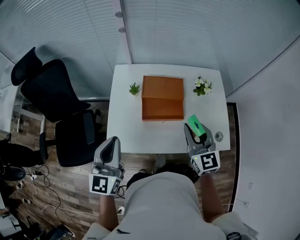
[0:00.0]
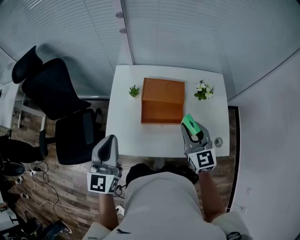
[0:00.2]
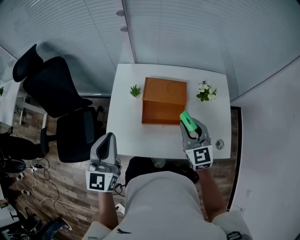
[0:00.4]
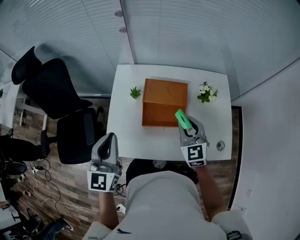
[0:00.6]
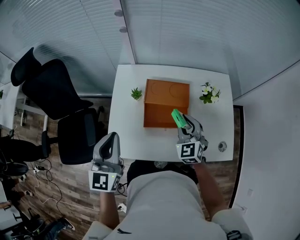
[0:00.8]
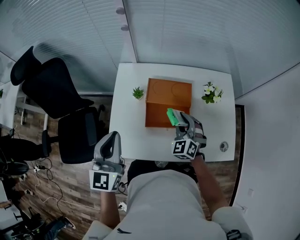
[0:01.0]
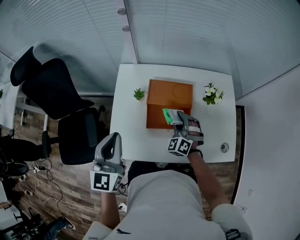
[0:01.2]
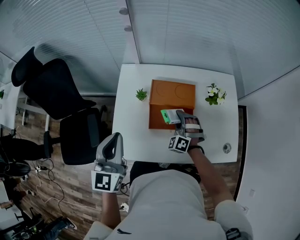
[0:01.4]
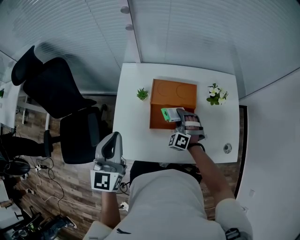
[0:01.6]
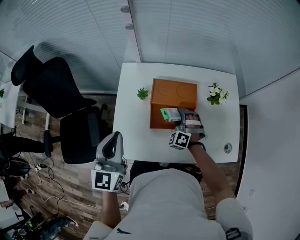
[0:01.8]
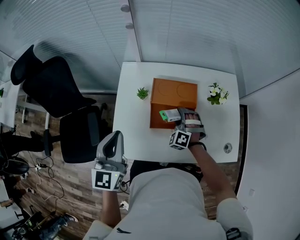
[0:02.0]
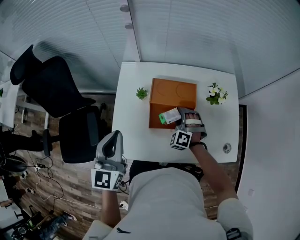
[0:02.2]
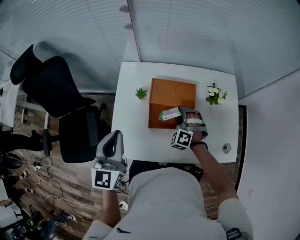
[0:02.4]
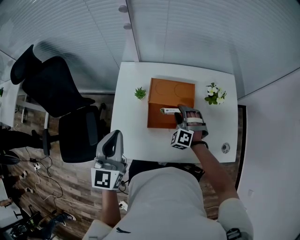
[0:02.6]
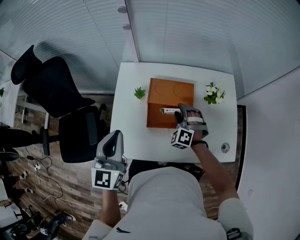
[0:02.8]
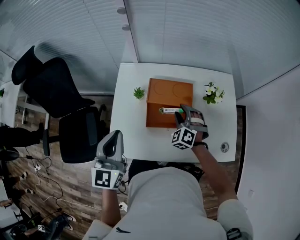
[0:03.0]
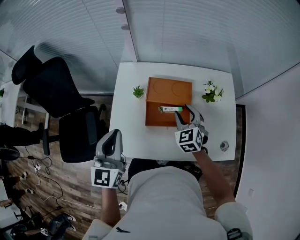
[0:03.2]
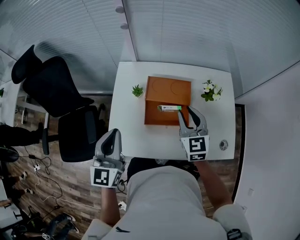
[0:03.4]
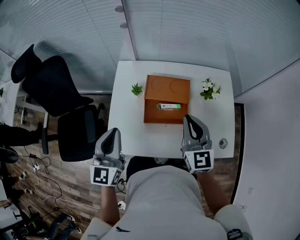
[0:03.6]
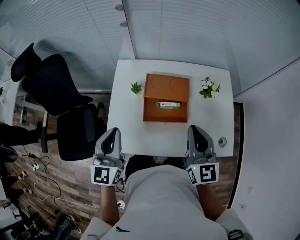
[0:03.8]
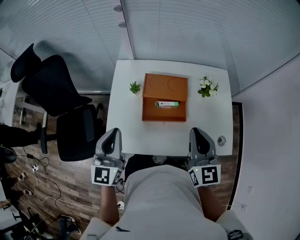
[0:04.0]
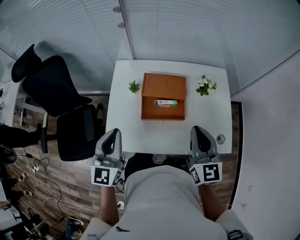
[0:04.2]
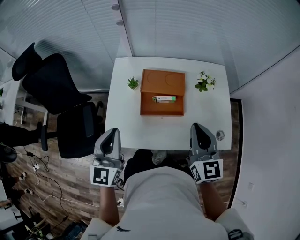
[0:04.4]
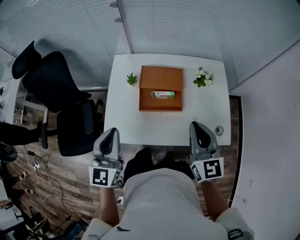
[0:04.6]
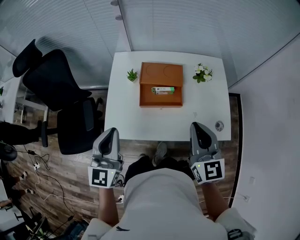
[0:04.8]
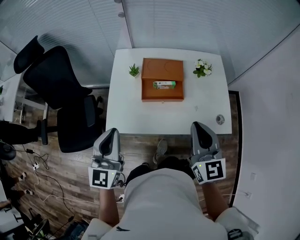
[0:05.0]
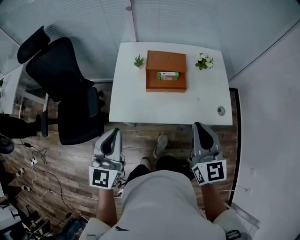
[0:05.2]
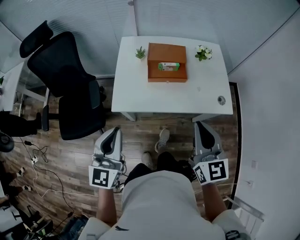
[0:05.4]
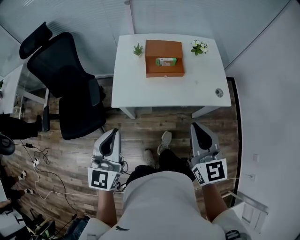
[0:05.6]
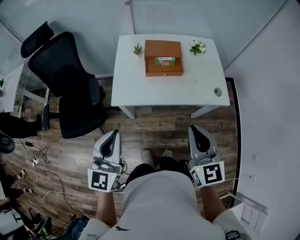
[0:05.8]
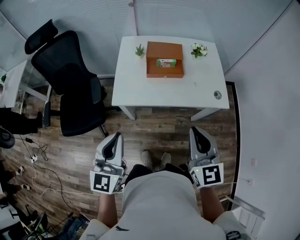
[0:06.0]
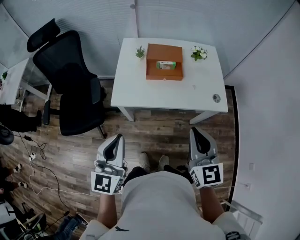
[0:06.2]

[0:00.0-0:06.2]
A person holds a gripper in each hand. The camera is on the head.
0:00.0 to 0:01.6: The right gripper travels downward and forward by roughly 25 cm, and rolls counterclockwise, seen from behind, by some 60 degrees; the left gripper goes approximately 10 cm forward.
0:01.6 to 0:03.2: The right gripper is displaced upward by about 10 cm, rolls clockwise, seen from behind, by about 40 degrees, and opens its fingers.
0:03.2 to 0:04.6: The left gripper heads backward, covering approximately 10 cm. The right gripper moves backward and upward, roughly 25 cm, swivels approximately 30 degrees, and closes.
0:04.6 to 0:06.2: Both grippers move backward, approximately 25 cm.

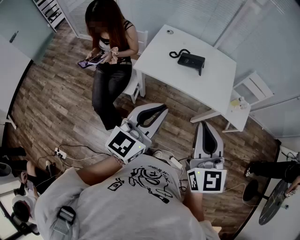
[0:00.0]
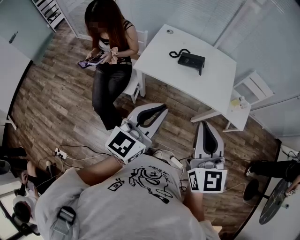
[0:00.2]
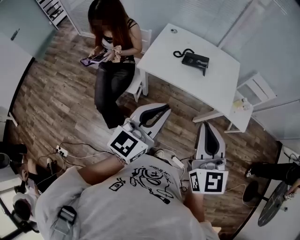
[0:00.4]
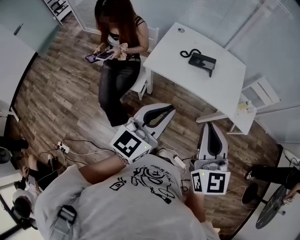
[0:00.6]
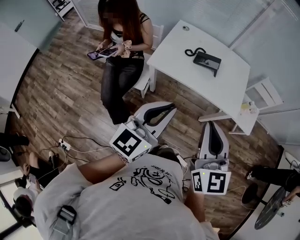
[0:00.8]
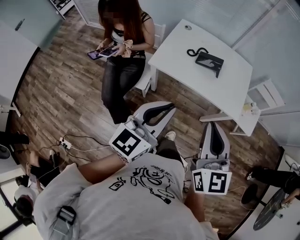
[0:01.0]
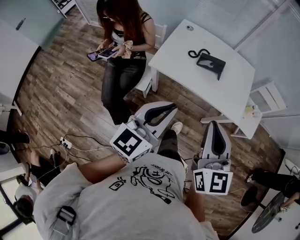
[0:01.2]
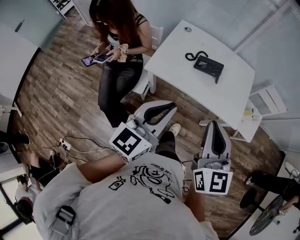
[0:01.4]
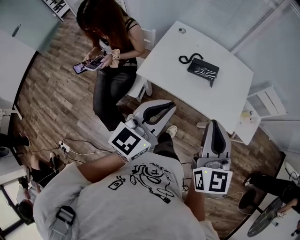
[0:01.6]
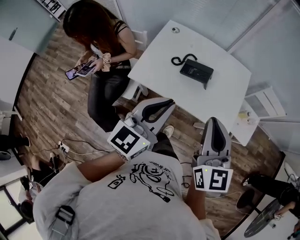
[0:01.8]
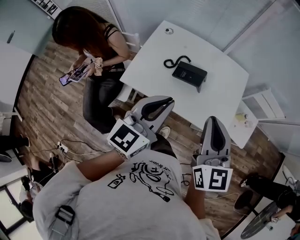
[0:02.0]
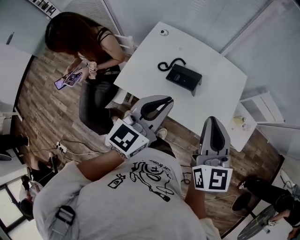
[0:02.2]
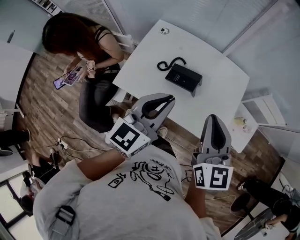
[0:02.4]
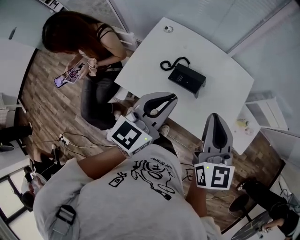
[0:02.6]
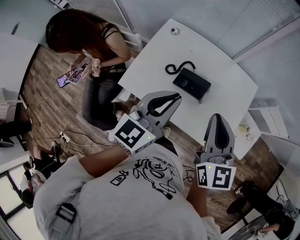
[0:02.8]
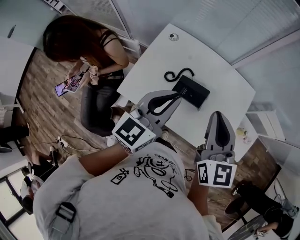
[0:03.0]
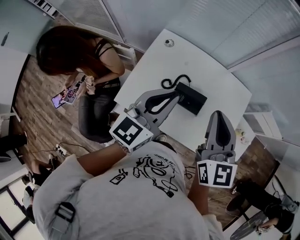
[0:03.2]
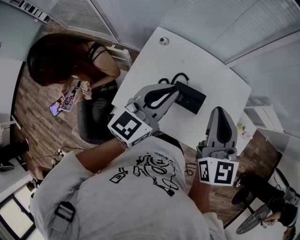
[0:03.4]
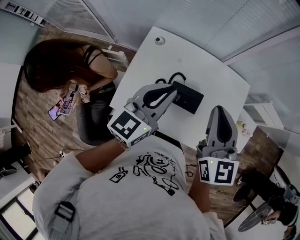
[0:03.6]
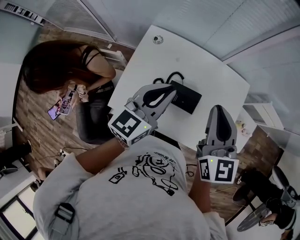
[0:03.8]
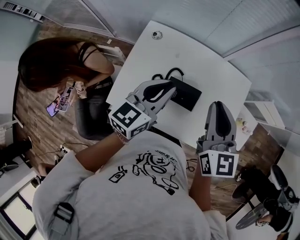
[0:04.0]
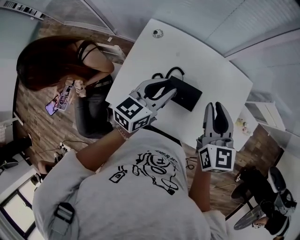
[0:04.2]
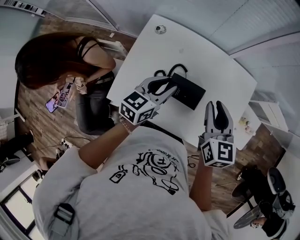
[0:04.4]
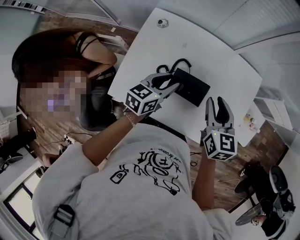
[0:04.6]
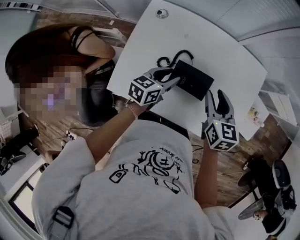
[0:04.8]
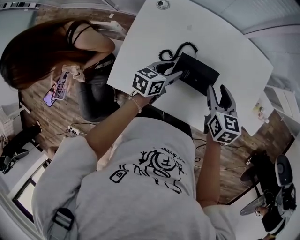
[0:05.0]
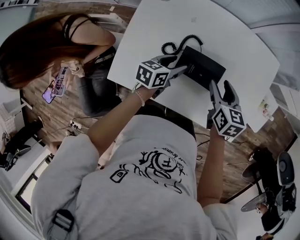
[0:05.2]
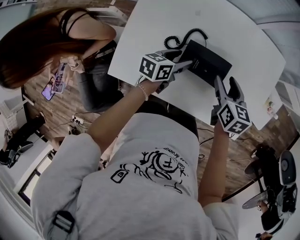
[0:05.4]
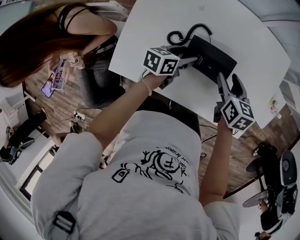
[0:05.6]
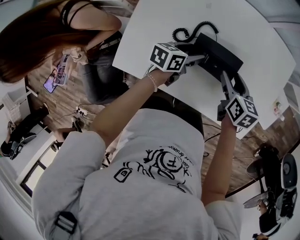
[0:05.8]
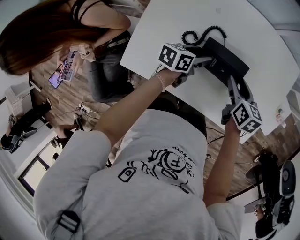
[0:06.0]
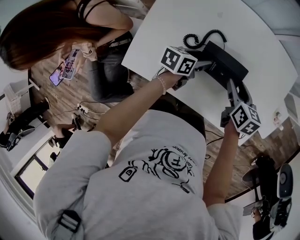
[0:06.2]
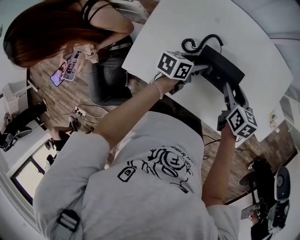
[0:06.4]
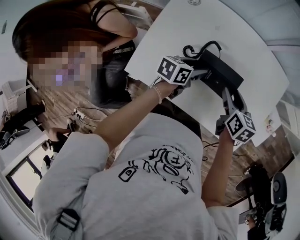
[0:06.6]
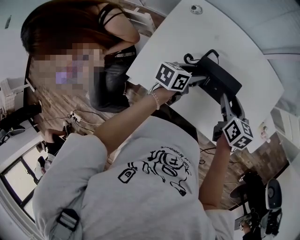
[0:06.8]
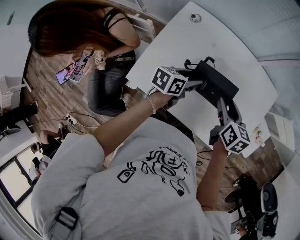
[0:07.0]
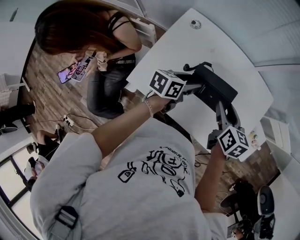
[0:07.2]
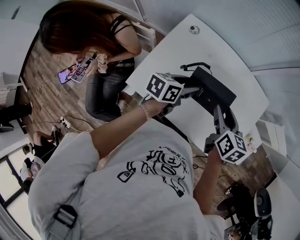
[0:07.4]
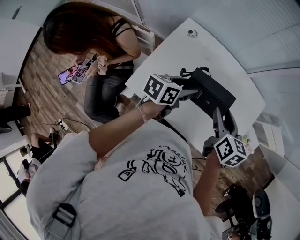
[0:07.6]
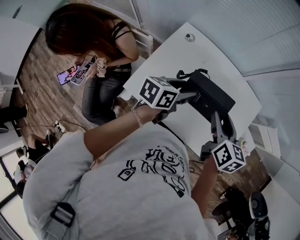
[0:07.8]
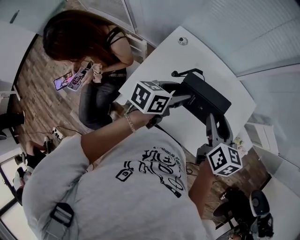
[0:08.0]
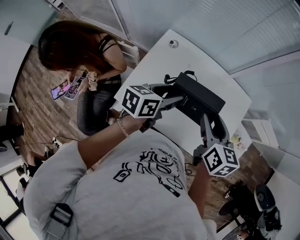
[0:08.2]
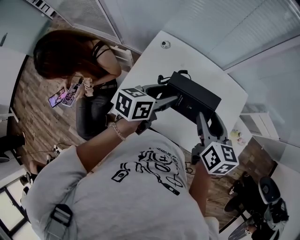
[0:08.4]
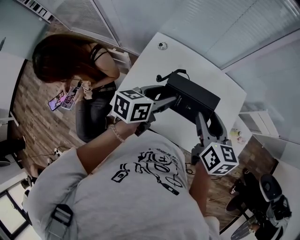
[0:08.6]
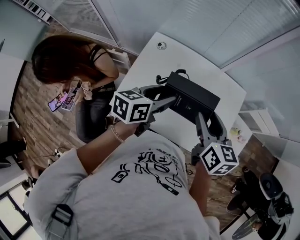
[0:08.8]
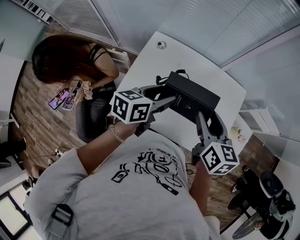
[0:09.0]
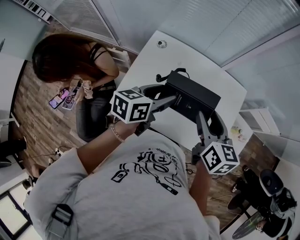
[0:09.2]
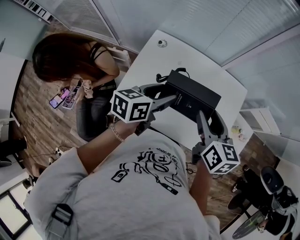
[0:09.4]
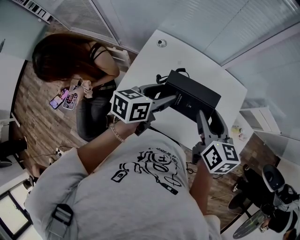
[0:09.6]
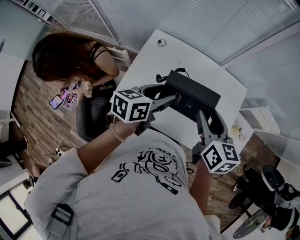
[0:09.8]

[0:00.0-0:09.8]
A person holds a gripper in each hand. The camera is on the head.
0:00.0 to 0:01.4: The grippers both shift forward by roughly 10 cm.
0:01.4 to 0:02.8: Both grippers move forward, roughly 30 cm.
0:02.8 to 0:04.2: Both grippers move forward and downward, roughly 15 cm.
0:04.2 to 0:05.6: Both grippers move downward, roughly 30 cm. The right gripper turns by approximately 30 degrees, and opens up; the left gripper changes its angle by some 30 degrees, and opens.
0:05.6 to 0:07.0: Both grippers move upward, about 10 cm.
0:07.0 to 0:08.4: Both grippers travel together upward, some 15 cm.
0:08.4 to 0:09.8: The two grippers keep their place.

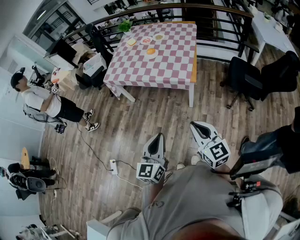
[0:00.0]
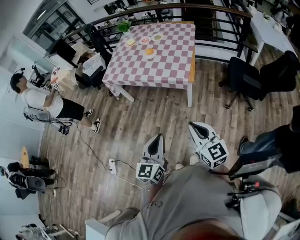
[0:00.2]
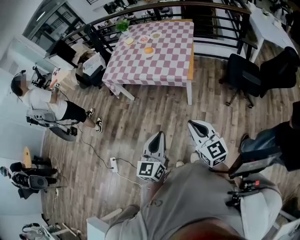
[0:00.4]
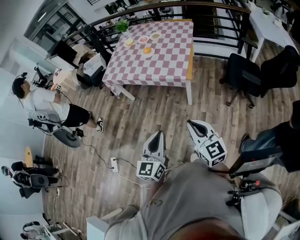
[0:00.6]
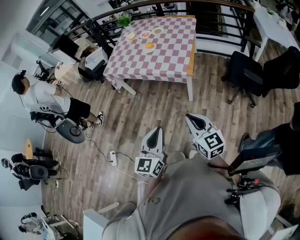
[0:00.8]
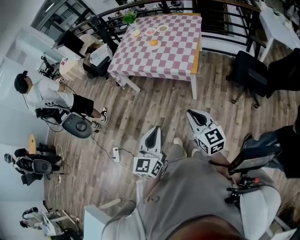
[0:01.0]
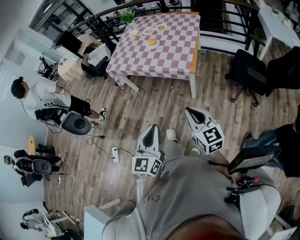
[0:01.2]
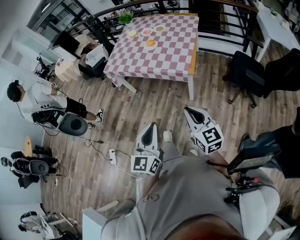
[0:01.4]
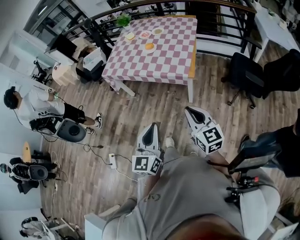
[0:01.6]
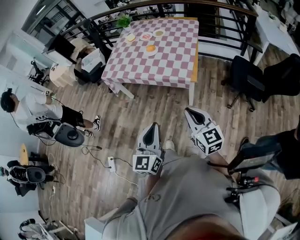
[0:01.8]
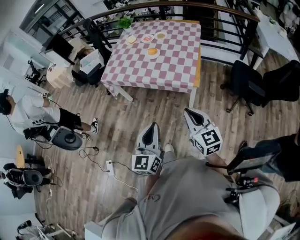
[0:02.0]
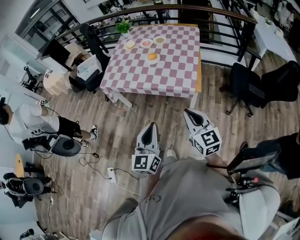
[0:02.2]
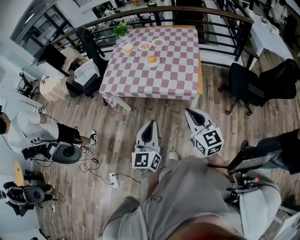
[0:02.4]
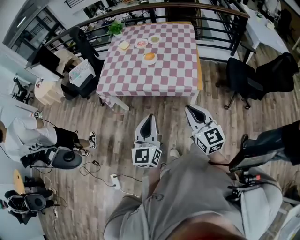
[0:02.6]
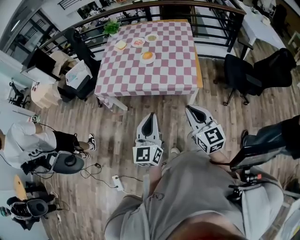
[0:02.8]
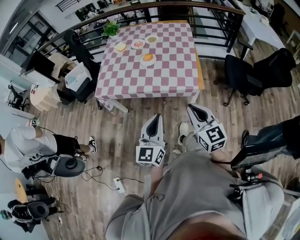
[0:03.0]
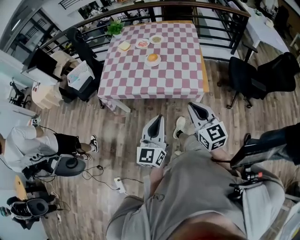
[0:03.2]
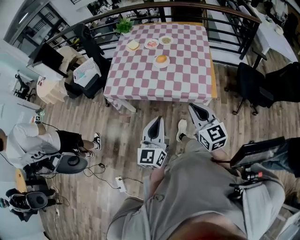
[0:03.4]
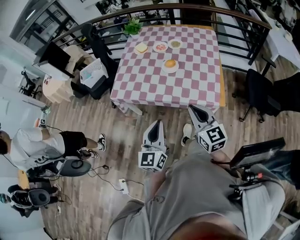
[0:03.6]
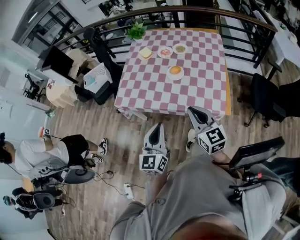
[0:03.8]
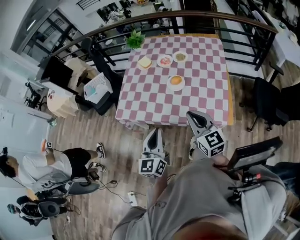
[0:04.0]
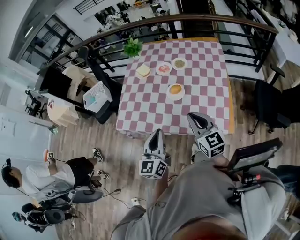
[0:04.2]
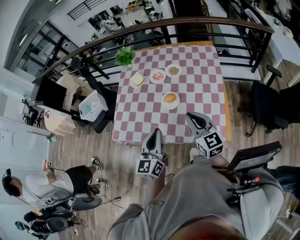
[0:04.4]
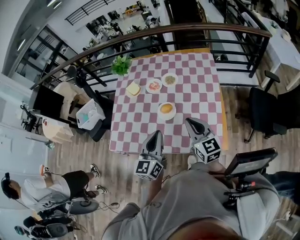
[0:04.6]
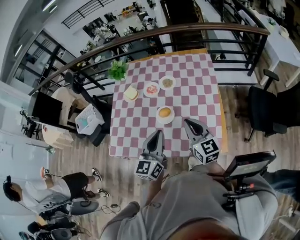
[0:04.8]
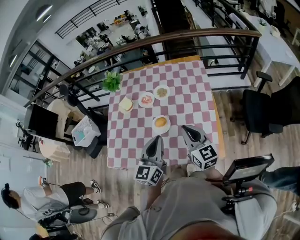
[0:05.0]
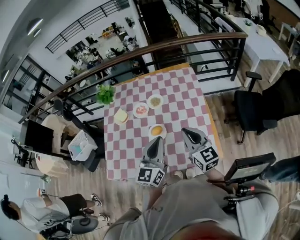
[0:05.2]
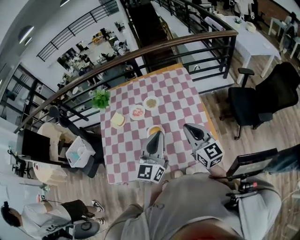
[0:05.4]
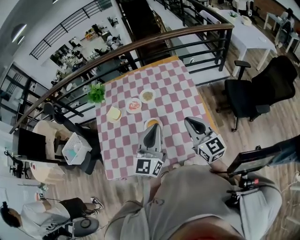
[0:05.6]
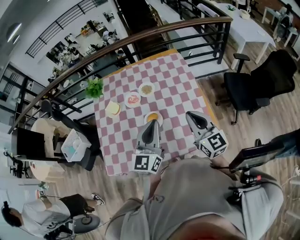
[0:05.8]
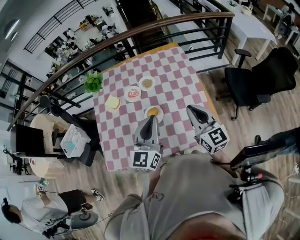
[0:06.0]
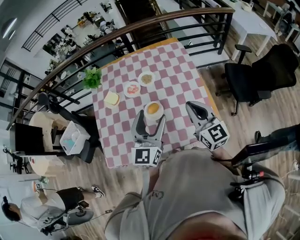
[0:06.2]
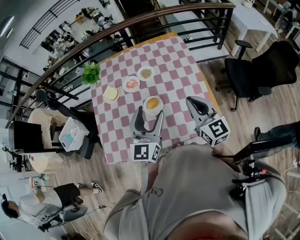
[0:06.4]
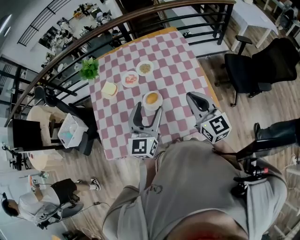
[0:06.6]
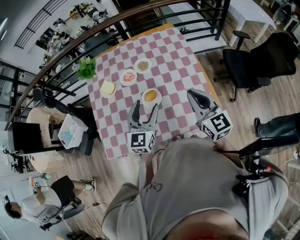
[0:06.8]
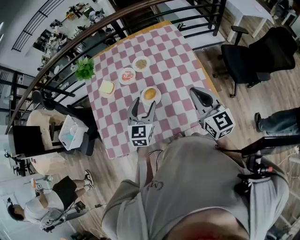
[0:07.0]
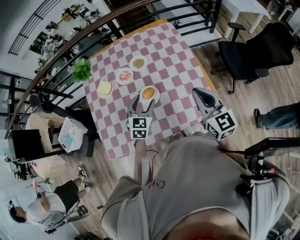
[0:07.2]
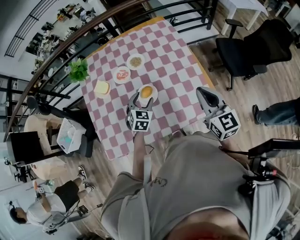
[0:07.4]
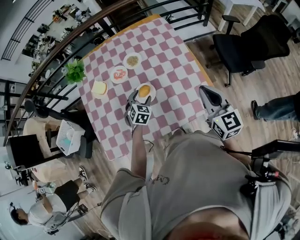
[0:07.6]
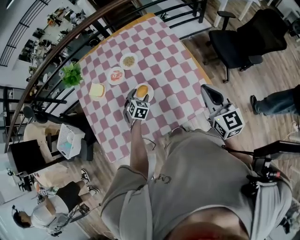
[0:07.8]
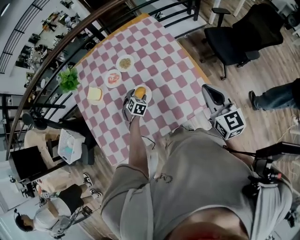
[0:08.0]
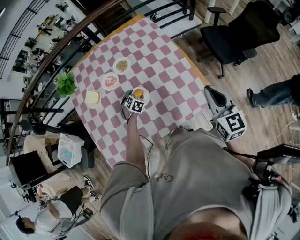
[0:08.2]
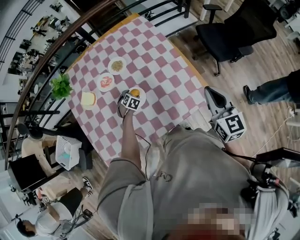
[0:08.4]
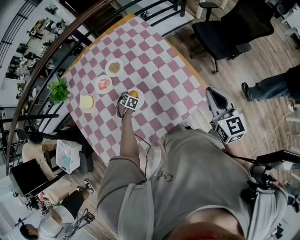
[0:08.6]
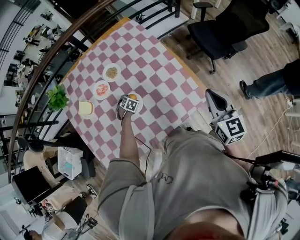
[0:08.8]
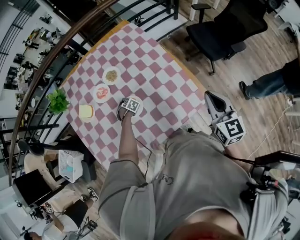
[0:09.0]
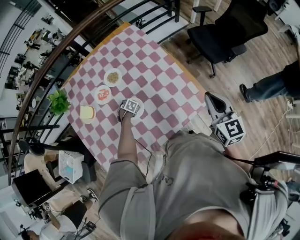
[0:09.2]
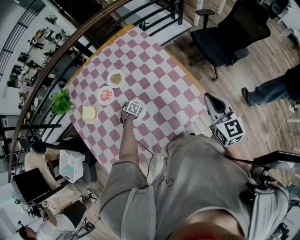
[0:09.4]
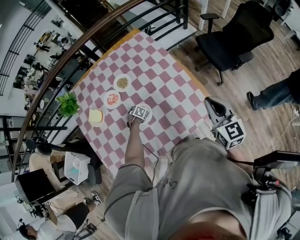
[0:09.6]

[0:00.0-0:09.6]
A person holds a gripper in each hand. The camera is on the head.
0:00.0 to 0:01.6: The right gripper heads forward, covering roughly 5 cm.
0:01.6 to 0:03.2: Both grippers travel together forward and to the left, roughly 30 cm.
0:03.2 to 0:04.8: The pair of grippers is taken forward, approximately 40 cm.
0:04.8 to 0:06.4: The left gripper heads forward, covering some 5 cm, and opens up.
0:06.4 to 0:08.0: The right gripper goes some 10 cm to the right, and changes its angle by roughly 20 degrees; the left gripper heads downward, covering about 35 cm, and angles its fingers downward, by about 60 degrees.
0:08.0 to 0:09.6: The left gripper shifts approximately 15 cm downward, and rotates about 30 degrees.
